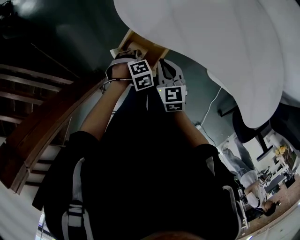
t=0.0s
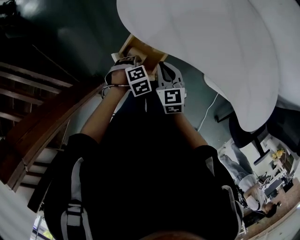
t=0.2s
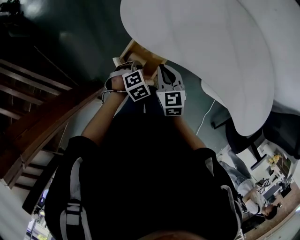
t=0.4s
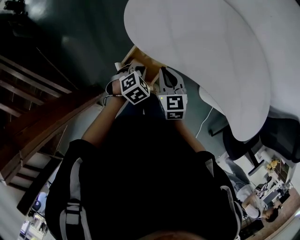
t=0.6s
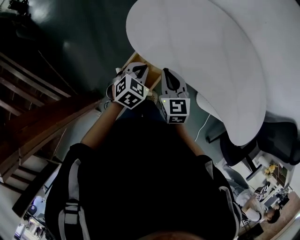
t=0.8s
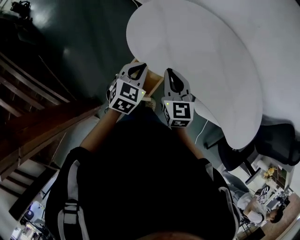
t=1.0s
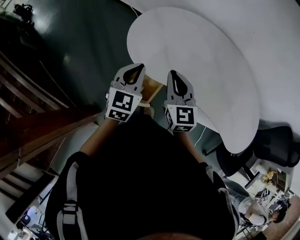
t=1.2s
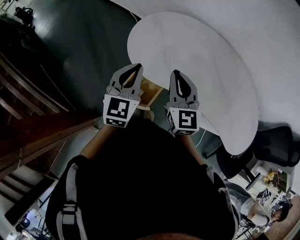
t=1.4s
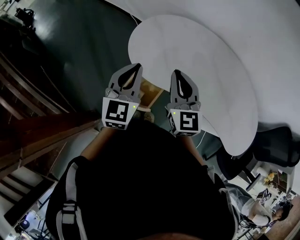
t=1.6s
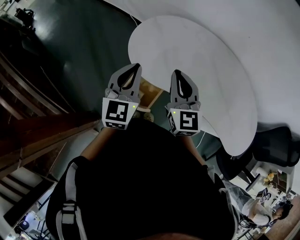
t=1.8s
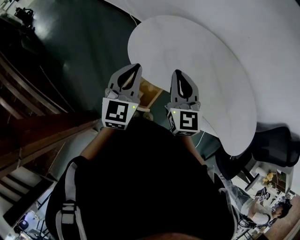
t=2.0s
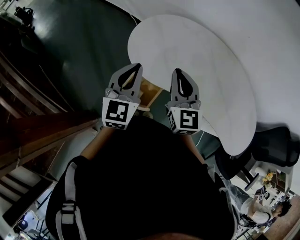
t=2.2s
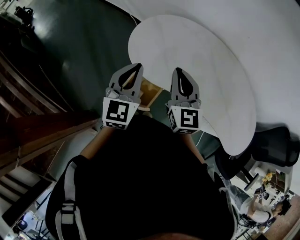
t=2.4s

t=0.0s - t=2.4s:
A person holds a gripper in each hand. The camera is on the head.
t=0.0s - t=1.2s: The grippers both shift upward by about 25 cm. The left gripper tips its fingers upward by about 70 degrees, and closes up, while the right gripper rotates roughly 20 degrees.
t=1.2s - t=2.4s: The grippers both shift upward by approximately 5 cm.

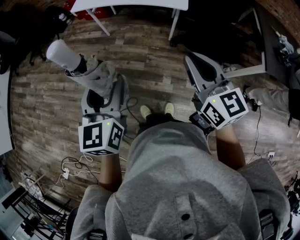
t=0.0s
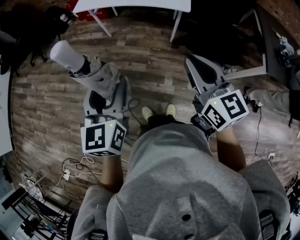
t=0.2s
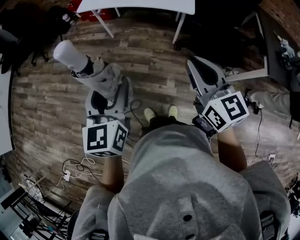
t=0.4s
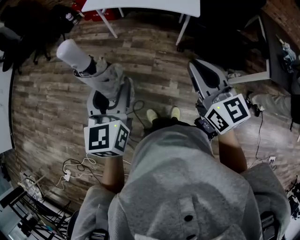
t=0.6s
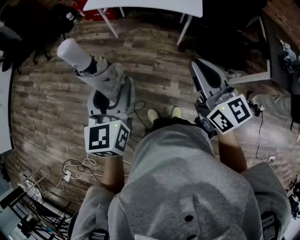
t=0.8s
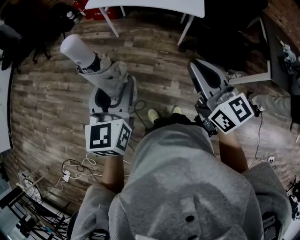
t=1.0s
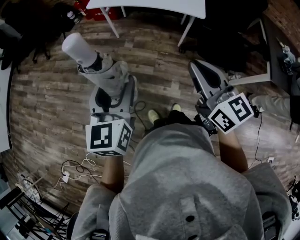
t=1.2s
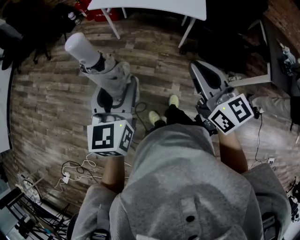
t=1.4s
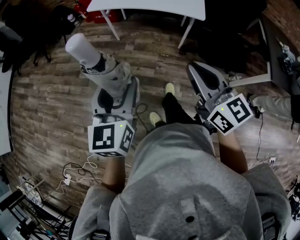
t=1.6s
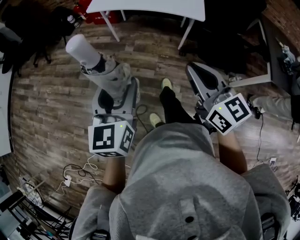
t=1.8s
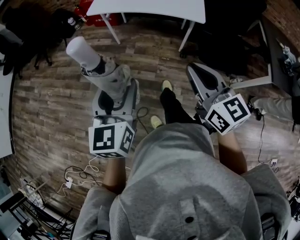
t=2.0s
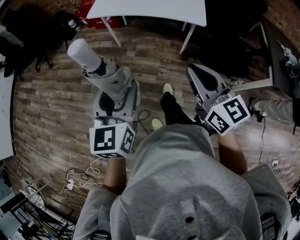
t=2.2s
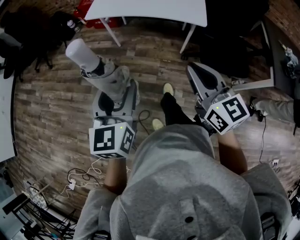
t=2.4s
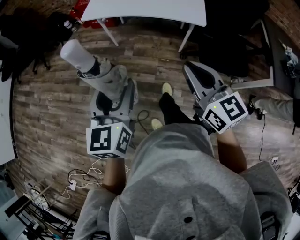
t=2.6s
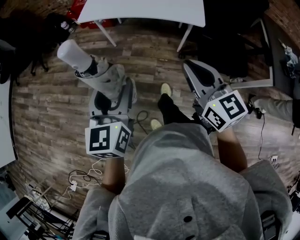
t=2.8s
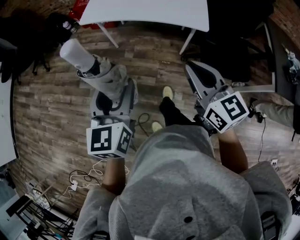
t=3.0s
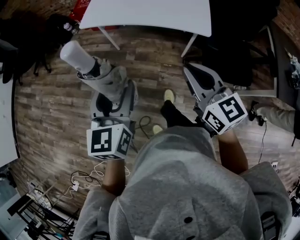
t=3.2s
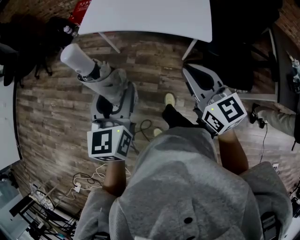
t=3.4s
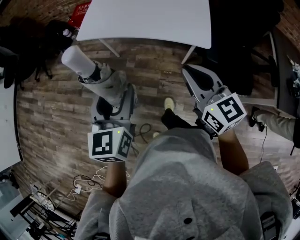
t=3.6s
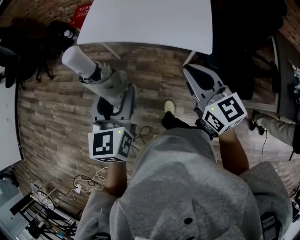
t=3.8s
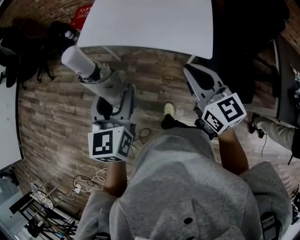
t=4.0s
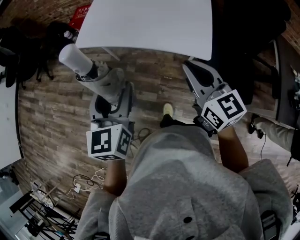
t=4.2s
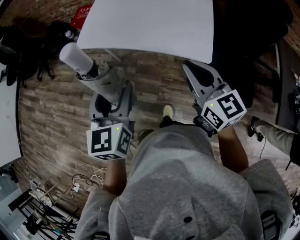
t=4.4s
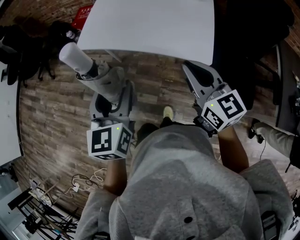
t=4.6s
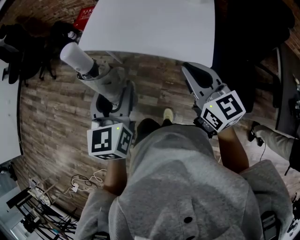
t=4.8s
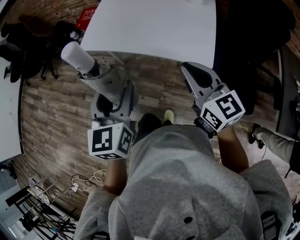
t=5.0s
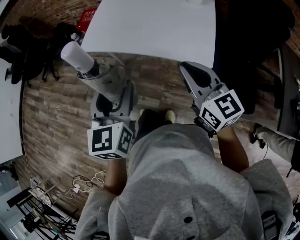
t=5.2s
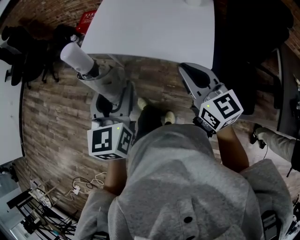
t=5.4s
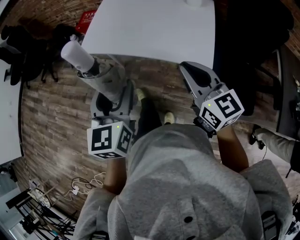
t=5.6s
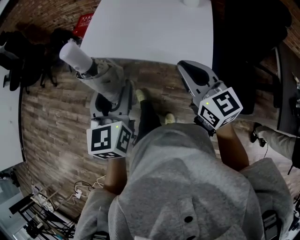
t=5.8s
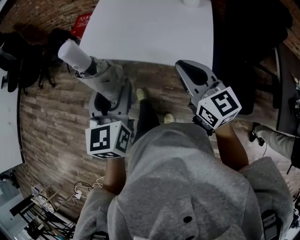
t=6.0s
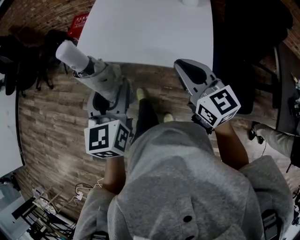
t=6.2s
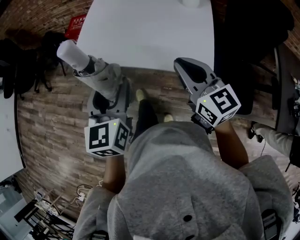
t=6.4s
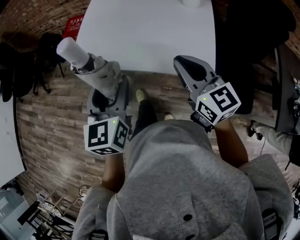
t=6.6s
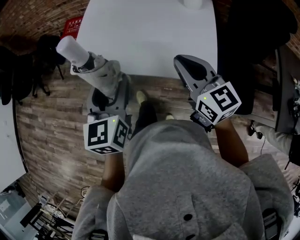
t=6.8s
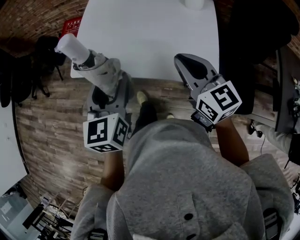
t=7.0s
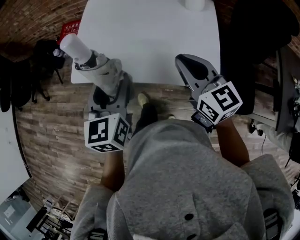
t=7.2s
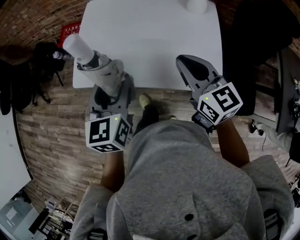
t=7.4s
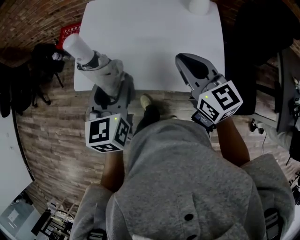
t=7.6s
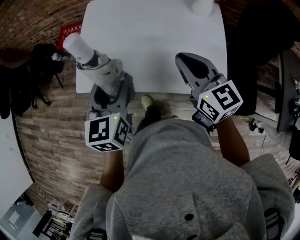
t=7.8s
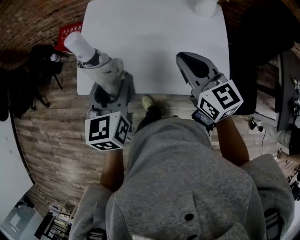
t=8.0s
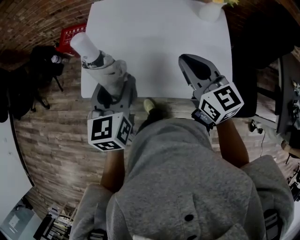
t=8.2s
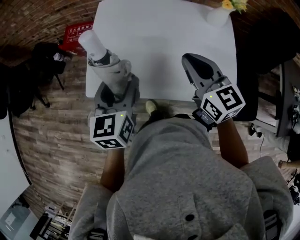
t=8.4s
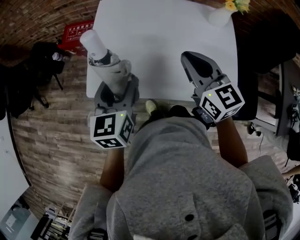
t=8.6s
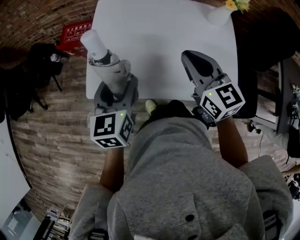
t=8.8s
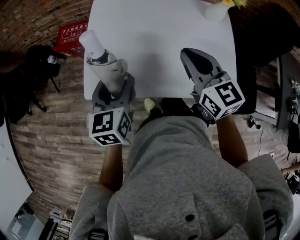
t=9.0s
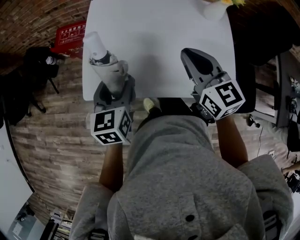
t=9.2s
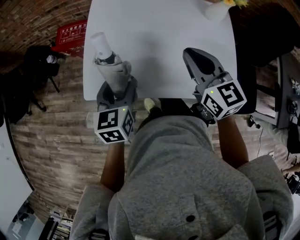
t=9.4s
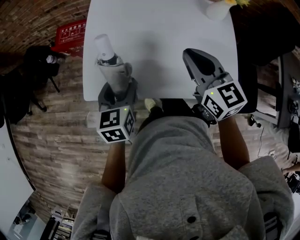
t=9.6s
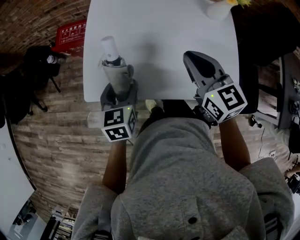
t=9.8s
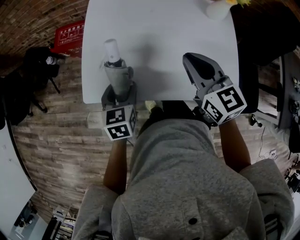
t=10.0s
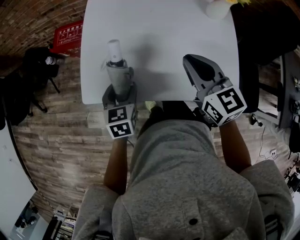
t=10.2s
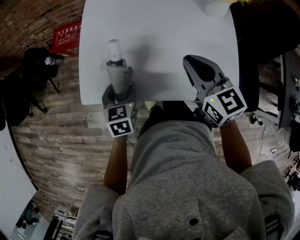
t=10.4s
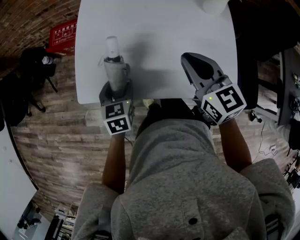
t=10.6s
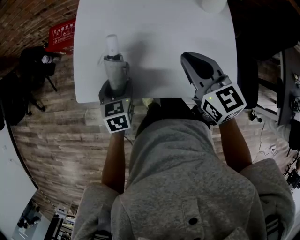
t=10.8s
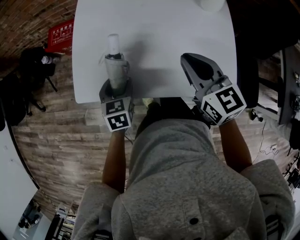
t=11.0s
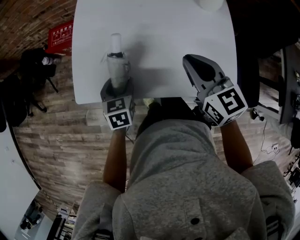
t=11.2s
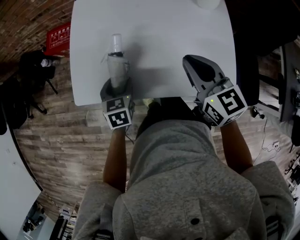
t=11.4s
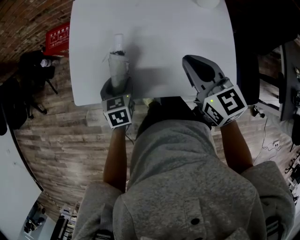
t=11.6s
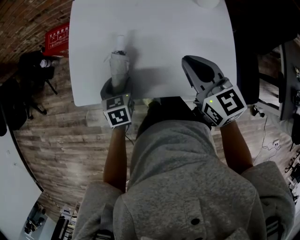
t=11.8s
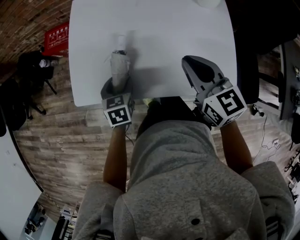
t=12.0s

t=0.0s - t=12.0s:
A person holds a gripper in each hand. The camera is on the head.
t=0.0s - t=1.6s: Both grippers travel together to the left, about 10 cm.
t=1.6s - t=3.0s: Both grippers move forward, about 15 cm.
t=3.0s - t=4.4s: The grippers both shift forward and to the right by about 20 cm.
t=4.4s - t=6.0s: Both grippers move forward, some 5 cm.
t=6.0s - t=7.6s: Both grippers travel together forward, about 25 cm.
t=7.6s - t=9.0s: The left gripper moves to the left, forward and downward, about 15 cm. The right gripper shifts about 15 cm to the left and forward.
t=9.0s - t=10.4s: The left gripper is displaced downward by roughly 10 cm.
t=10.4s - t=12.0s: The left gripper goes approximately 5 cm downward.

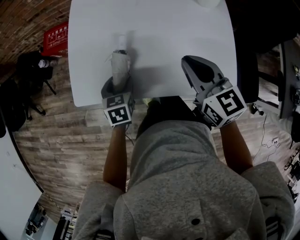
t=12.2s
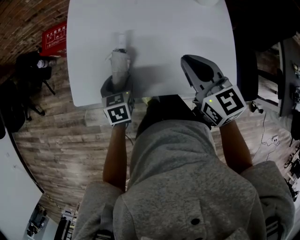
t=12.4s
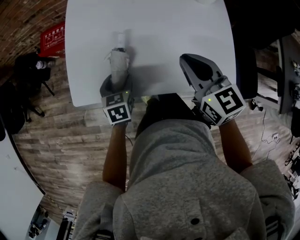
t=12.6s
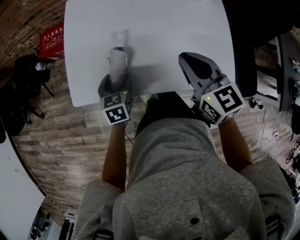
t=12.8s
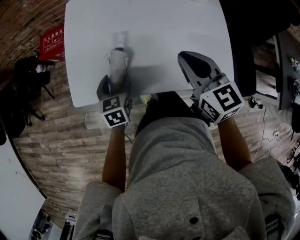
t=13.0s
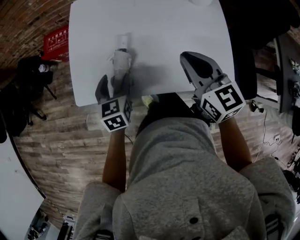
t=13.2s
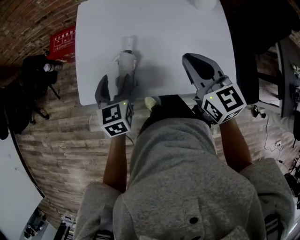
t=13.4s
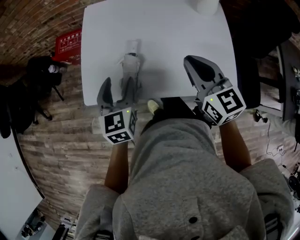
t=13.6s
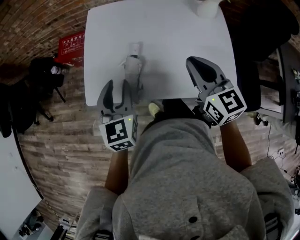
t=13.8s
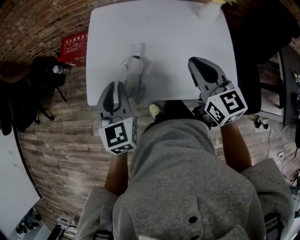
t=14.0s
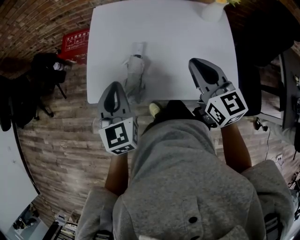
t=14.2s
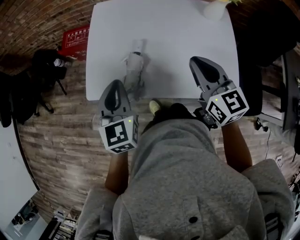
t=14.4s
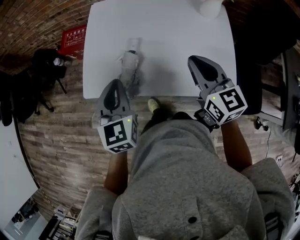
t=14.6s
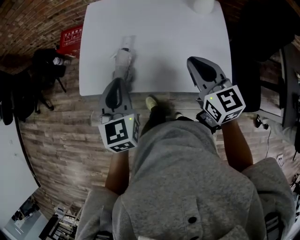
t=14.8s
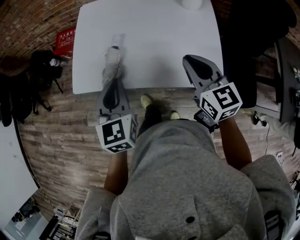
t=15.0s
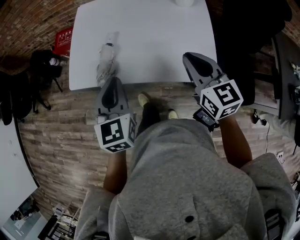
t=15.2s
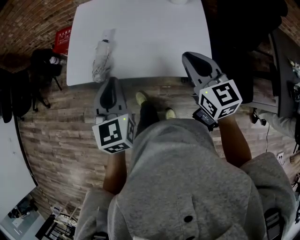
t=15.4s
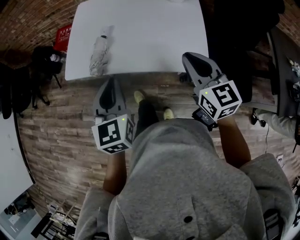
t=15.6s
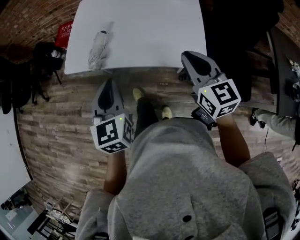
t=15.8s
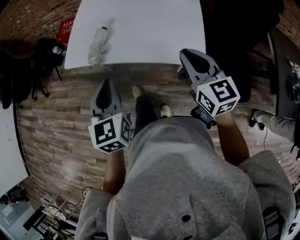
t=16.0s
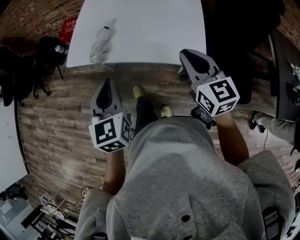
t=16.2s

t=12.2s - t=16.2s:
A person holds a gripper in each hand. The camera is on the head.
t=12.2s - t=13.6s: The left gripper goes some 15 cm upward, and changes its angle by some 20 degrees.
t=13.6s - t=14.8s: The left gripper travels upward and backward by approximately 10 cm, and closes. The right gripper travels to the right by approximately 5 cm.
t=14.8s - t=16.2s: The right gripper travels backward and to the right by some 20 cm. The left gripper moves backward, approximately 20 cm.

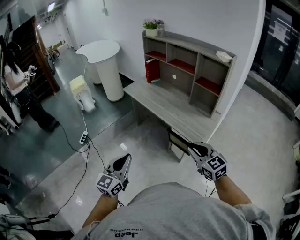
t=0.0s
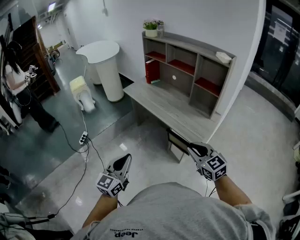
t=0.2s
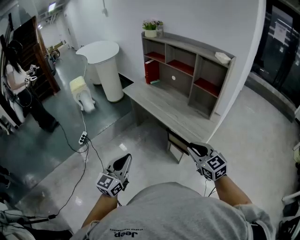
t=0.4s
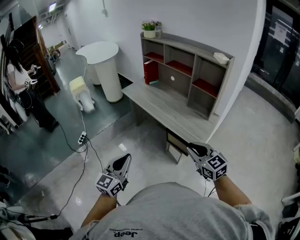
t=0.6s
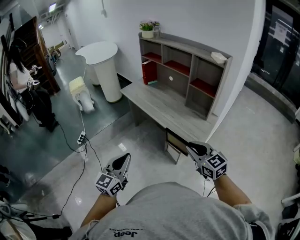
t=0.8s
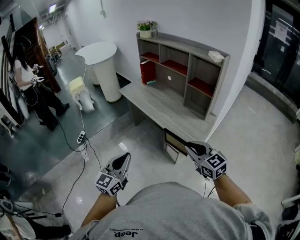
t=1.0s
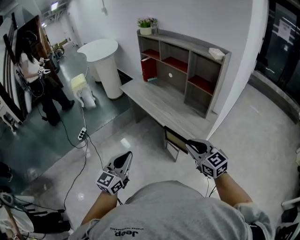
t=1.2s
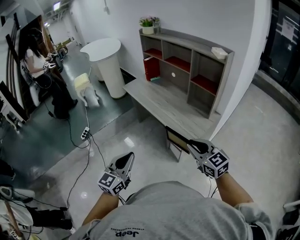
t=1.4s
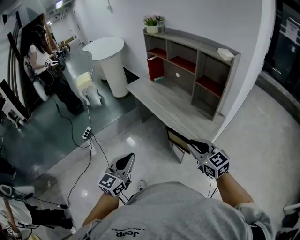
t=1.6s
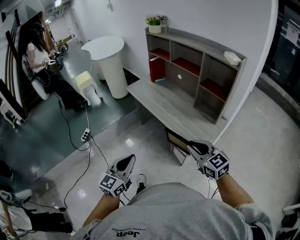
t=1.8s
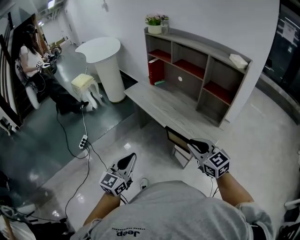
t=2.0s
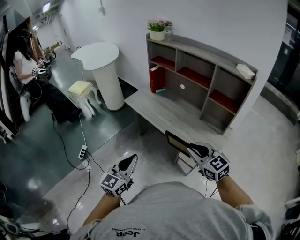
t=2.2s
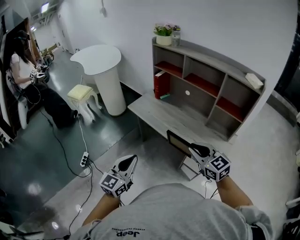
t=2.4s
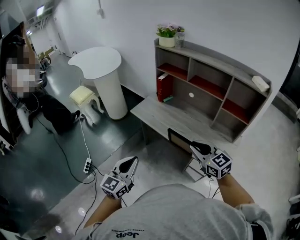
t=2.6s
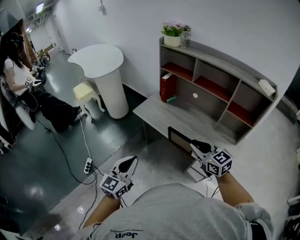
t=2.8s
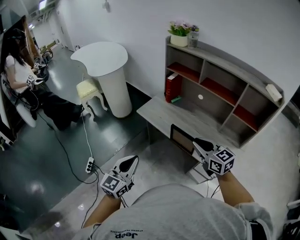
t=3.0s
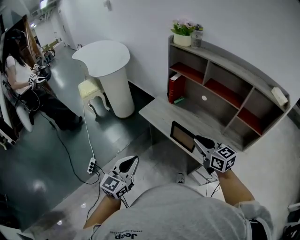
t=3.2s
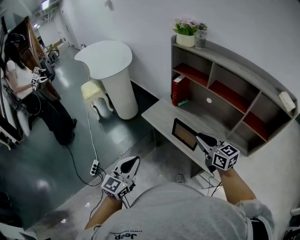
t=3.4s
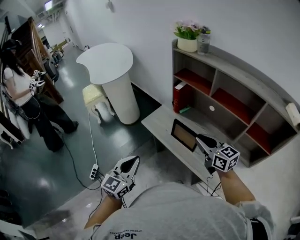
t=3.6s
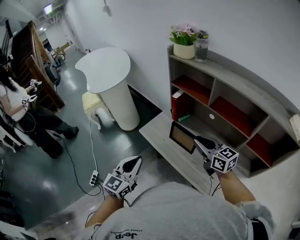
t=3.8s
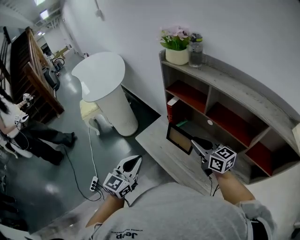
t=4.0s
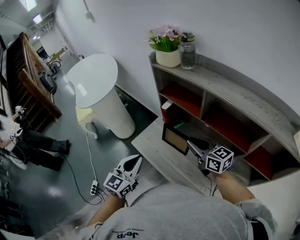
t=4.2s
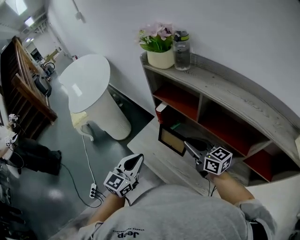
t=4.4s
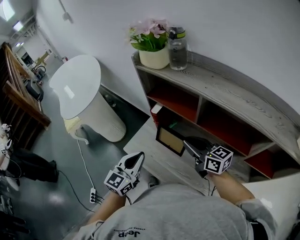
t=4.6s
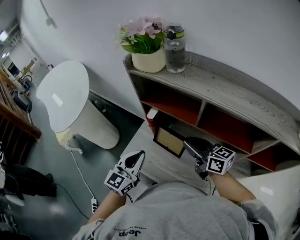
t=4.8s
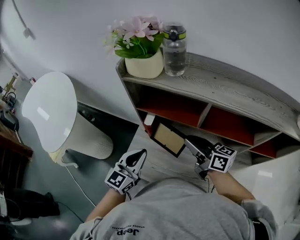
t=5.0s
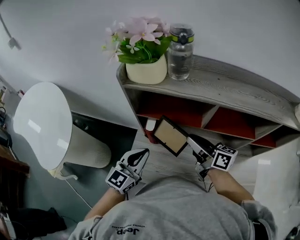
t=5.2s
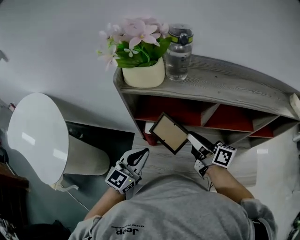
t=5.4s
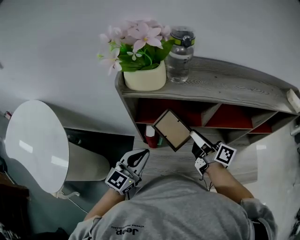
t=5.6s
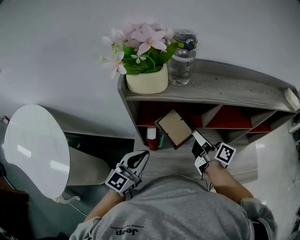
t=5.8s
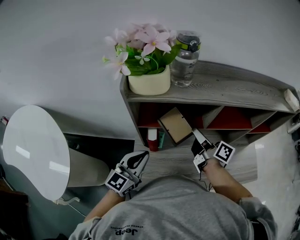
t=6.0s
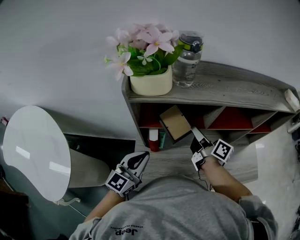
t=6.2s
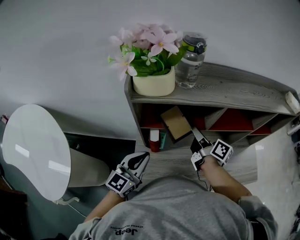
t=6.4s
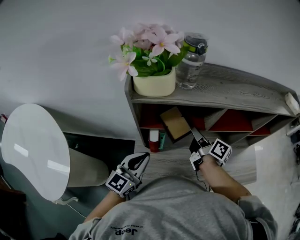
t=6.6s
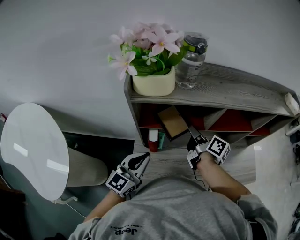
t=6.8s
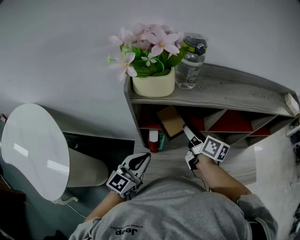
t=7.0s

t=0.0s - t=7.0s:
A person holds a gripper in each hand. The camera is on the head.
t=0.0s - t=1.4s: Both grippers travel together to the right, roughly 10 cm.
t=1.4s - t=2.8s: The pair of grippers is taken forward and to the left, approximately 40 cm.
t=2.8s - t=4.2s: The two grippers go about 35 cm forward. The right gripper rotates some 20 degrees.
t=4.2s - t=5.6s: The left gripper moves some 25 cm, and swivels about 50 degrees. The right gripper moves about 15 cm, and swivels some 60 degrees.
t=5.6s - t=7.0s: The right gripper shifts by approximately 5 cm, and opens.
